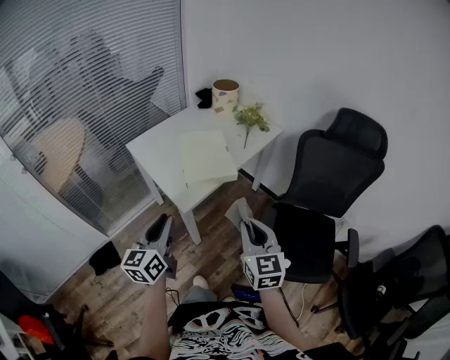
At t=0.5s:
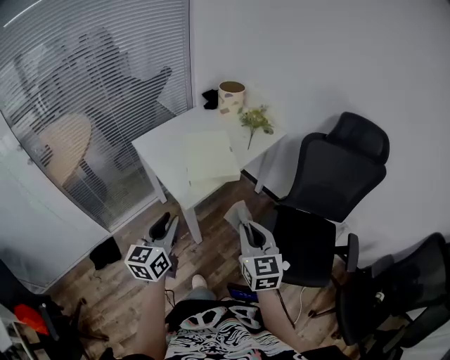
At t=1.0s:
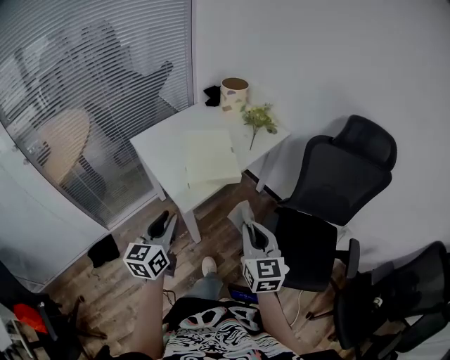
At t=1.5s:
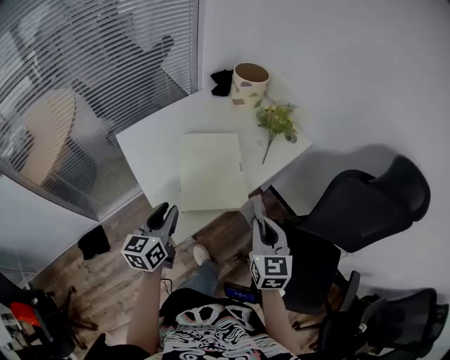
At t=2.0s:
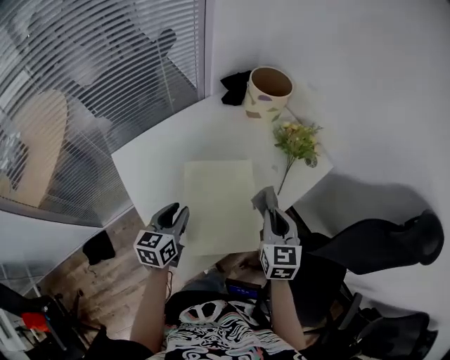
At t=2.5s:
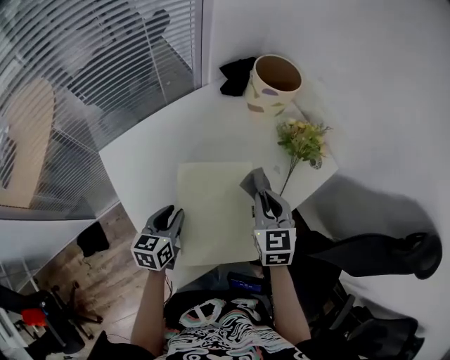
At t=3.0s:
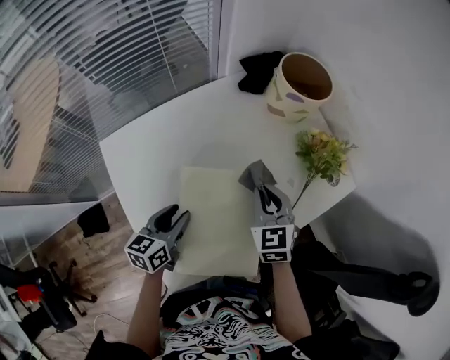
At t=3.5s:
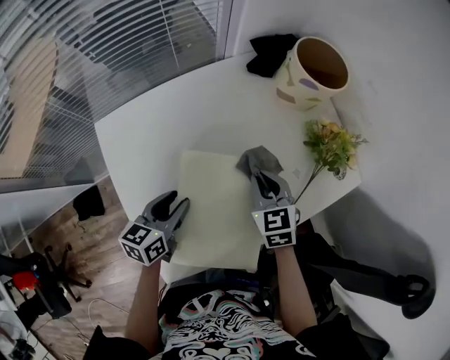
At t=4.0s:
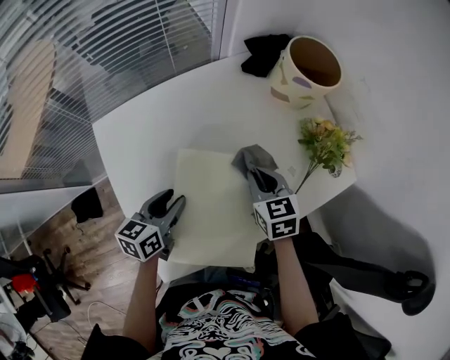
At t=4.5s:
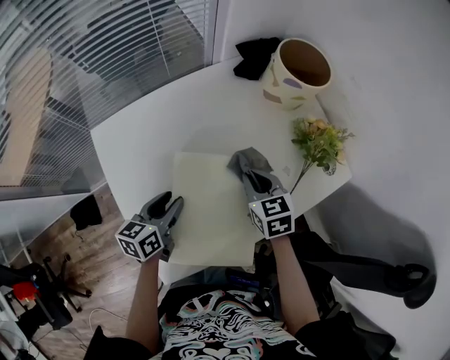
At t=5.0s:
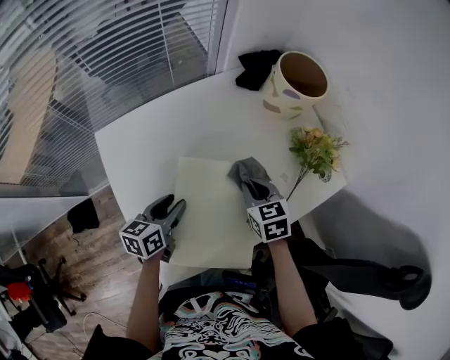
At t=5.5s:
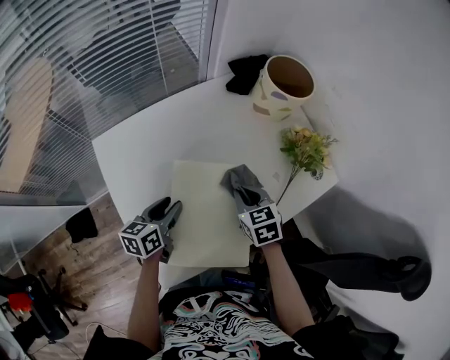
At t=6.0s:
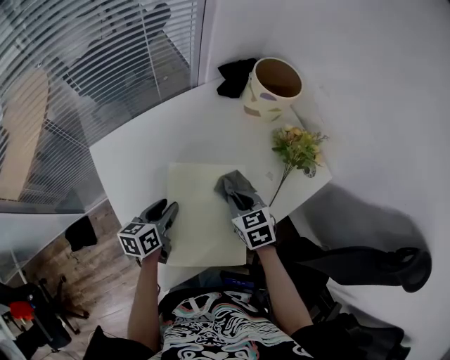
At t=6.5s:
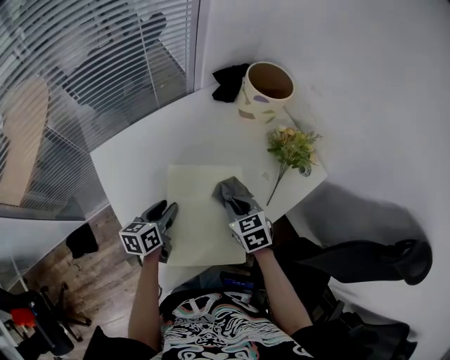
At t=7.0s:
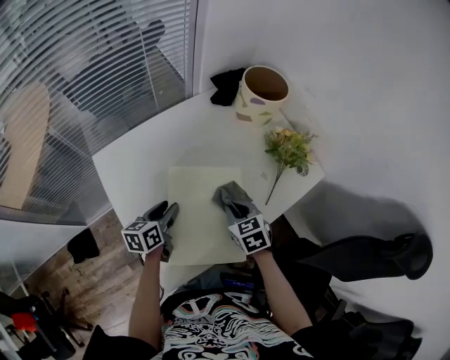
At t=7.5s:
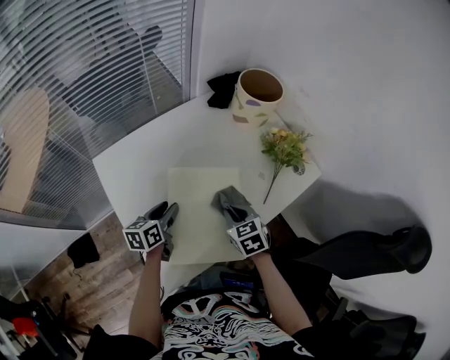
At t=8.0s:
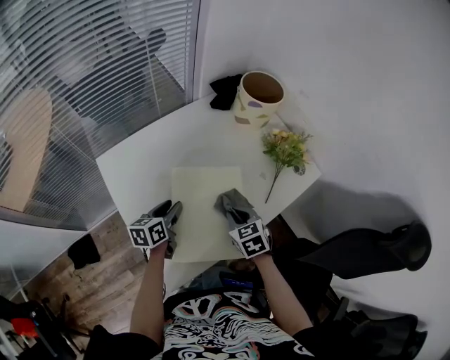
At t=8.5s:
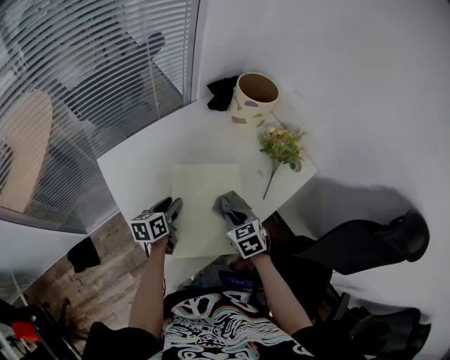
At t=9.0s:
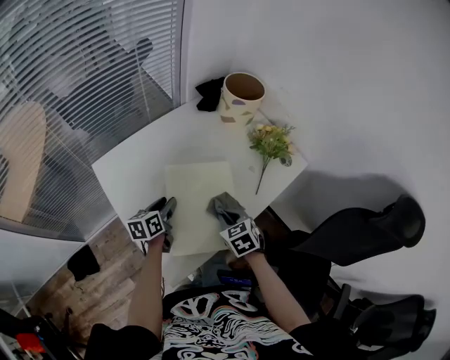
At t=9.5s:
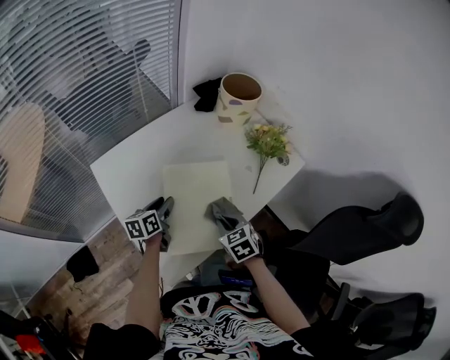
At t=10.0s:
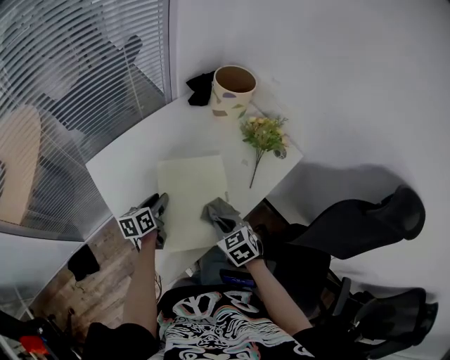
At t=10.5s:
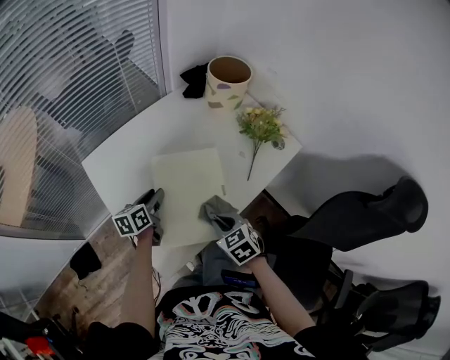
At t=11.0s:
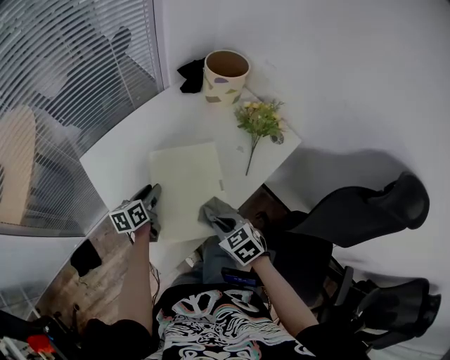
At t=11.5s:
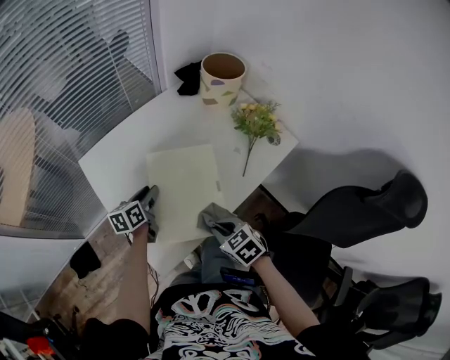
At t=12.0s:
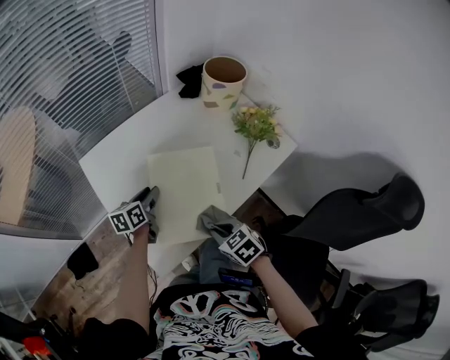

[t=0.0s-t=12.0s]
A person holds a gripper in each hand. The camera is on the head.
t=0.0s to t=2.0s: The grippers both shift forward by approximately 40 cm. The left gripper rotates approximately 20 degrees.
t=2.0s to t=4.0s: The right gripper goes approximately 20 cm forward, downward and to the left, and rotates about 30 degrees. The left gripper goes approximately 10 cm downward and forward.
t=4.0s to t=6.0s: The right gripper goes some 5 cm backward.
t=6.0s to t=8.0s: The right gripper shifts roughly 5 cm backward.
t=8.0s to t=10.0s: The right gripper moves backward, approximately 10 cm.
t=10.0s to t=12.0s: The right gripper shifts approximately 5 cm backward.

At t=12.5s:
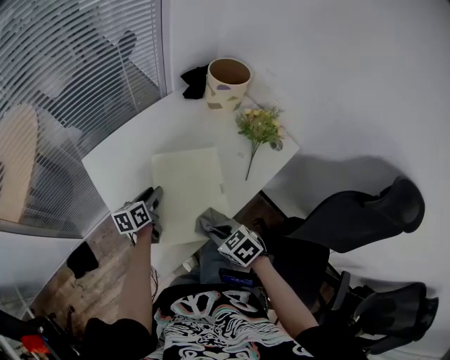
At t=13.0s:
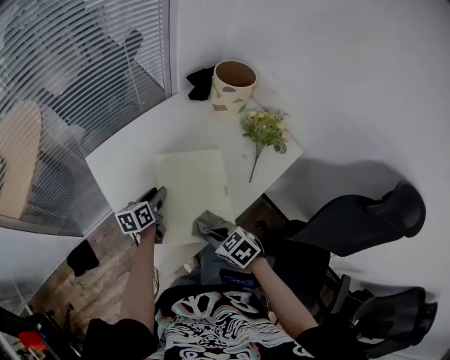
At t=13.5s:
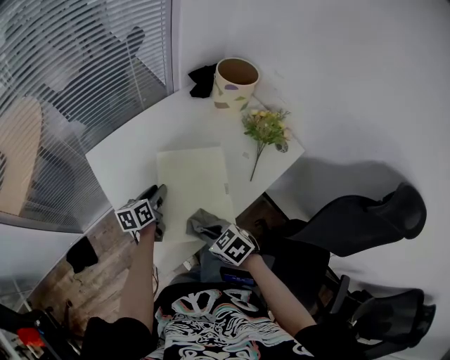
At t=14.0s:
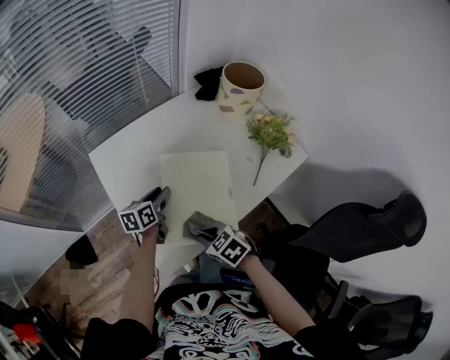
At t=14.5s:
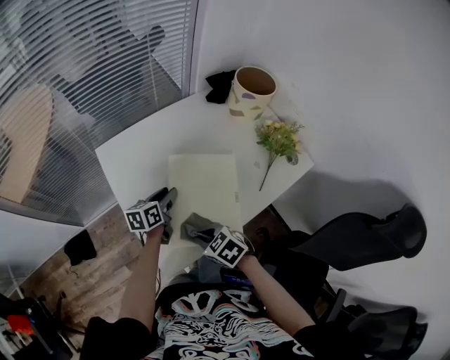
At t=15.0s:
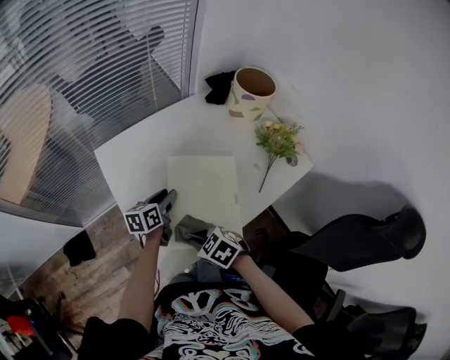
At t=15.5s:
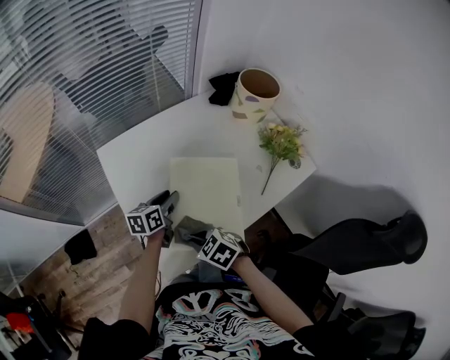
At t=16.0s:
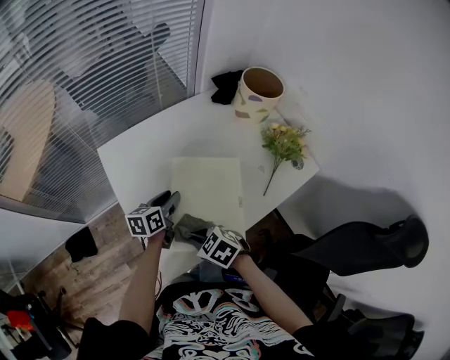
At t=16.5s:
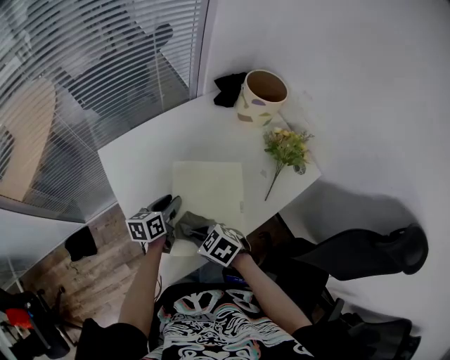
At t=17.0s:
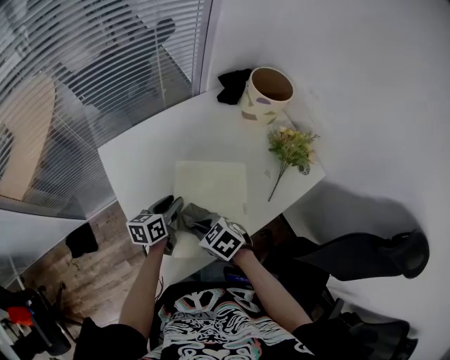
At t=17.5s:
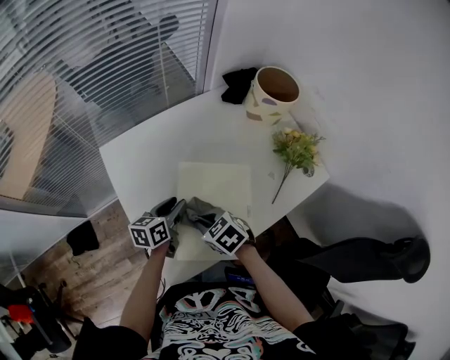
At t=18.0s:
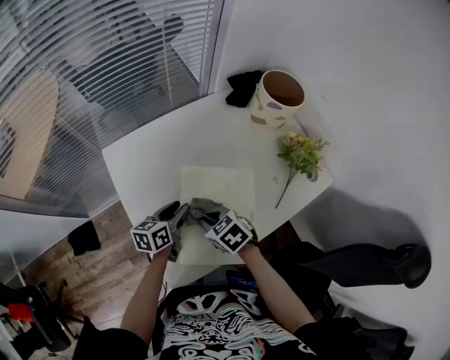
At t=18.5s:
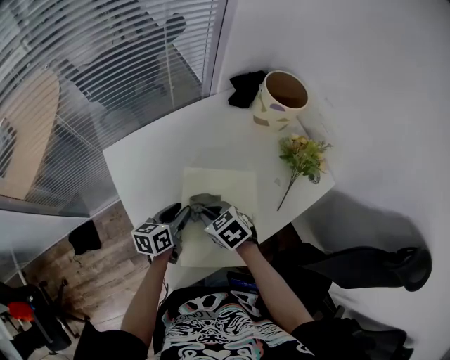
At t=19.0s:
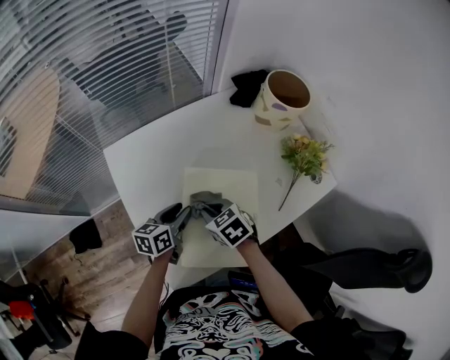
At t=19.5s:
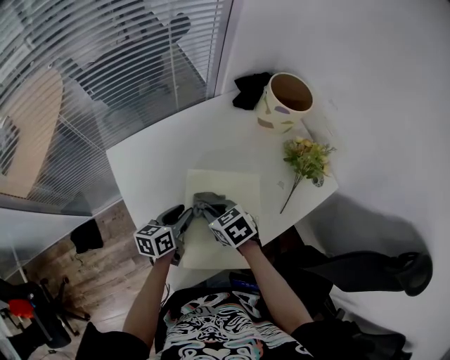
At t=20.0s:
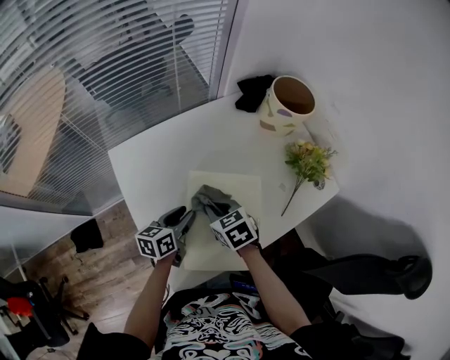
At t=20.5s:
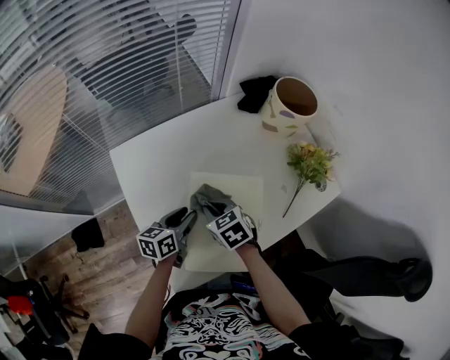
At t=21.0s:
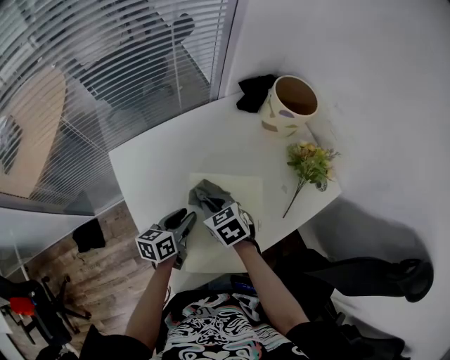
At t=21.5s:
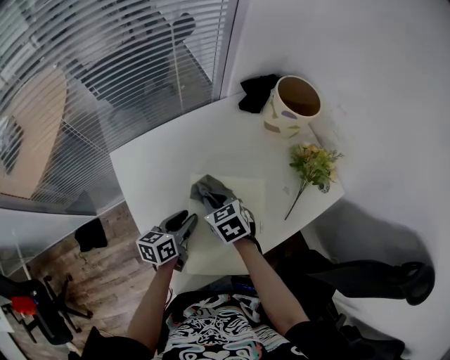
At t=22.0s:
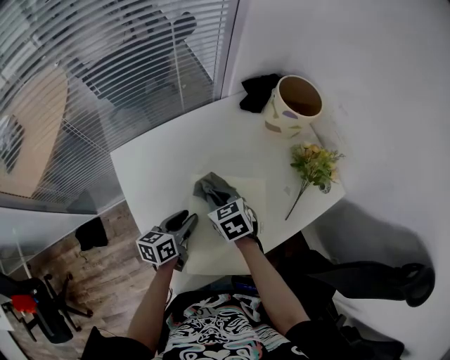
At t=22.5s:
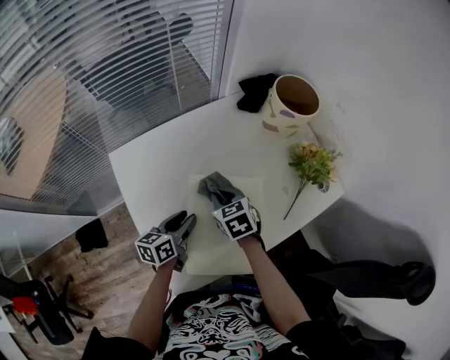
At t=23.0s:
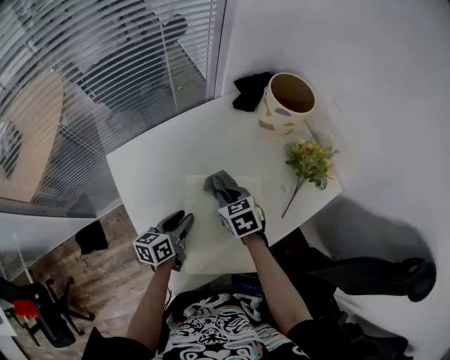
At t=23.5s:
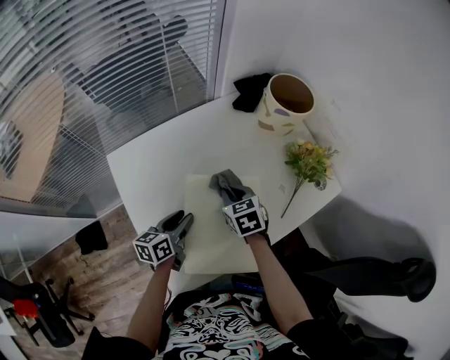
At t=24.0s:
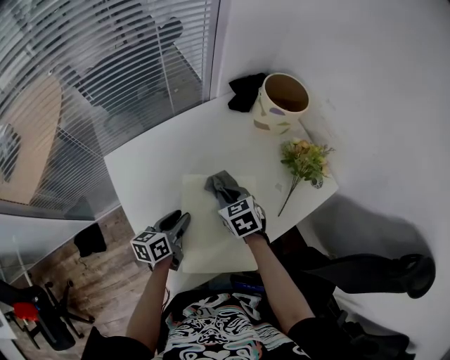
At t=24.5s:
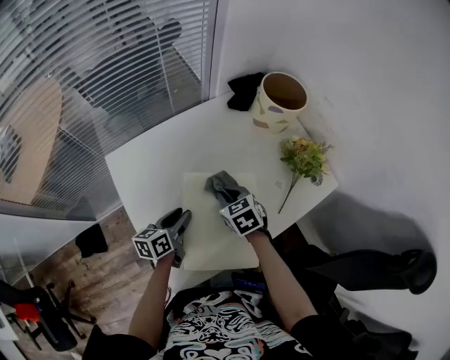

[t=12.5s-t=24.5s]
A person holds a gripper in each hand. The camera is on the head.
t=12.5s to t=14.5s: The right gripper heads to the left, covering some 10 cm.
t=14.5s to t=16.5s: The grippers make only small movements.
t=16.5s to t=18.5s: The right gripper goes approximately 10 cm forward.
t=18.5s to t=20.5s: The grippers stay close to where they were, moving slightly.
t=20.5s to t=22.5s: The right gripper shifts by approximately 5 cm.
t=22.5s to t=24.5s: The grippers stay close to where they were, moving slightly.

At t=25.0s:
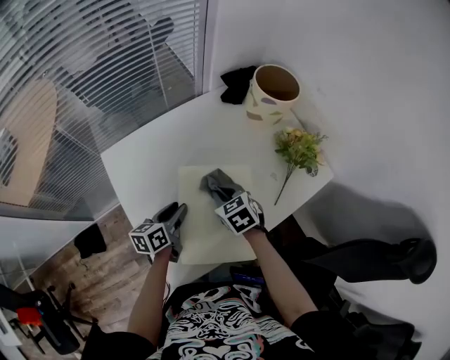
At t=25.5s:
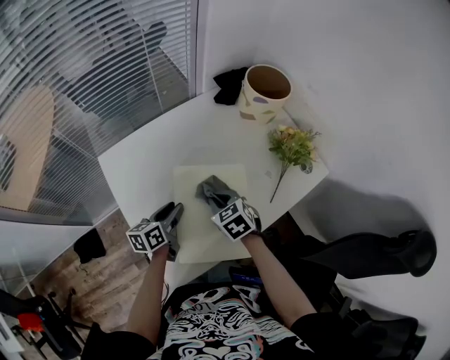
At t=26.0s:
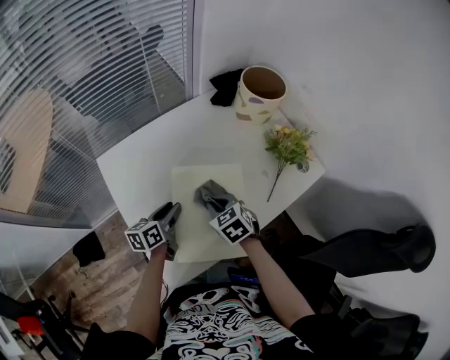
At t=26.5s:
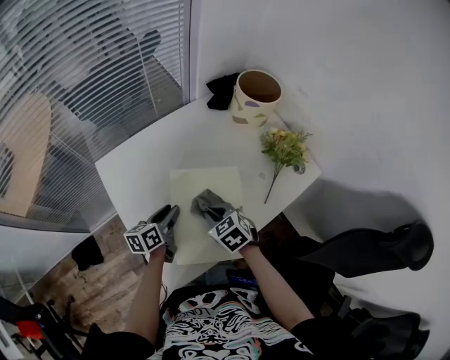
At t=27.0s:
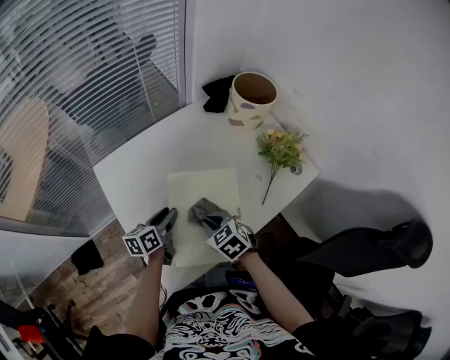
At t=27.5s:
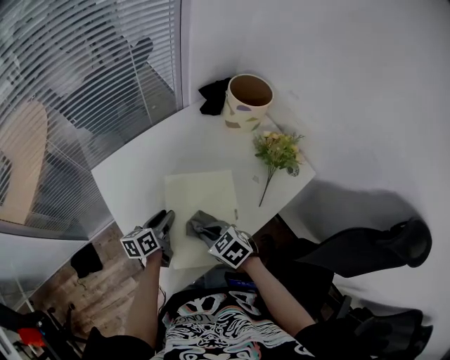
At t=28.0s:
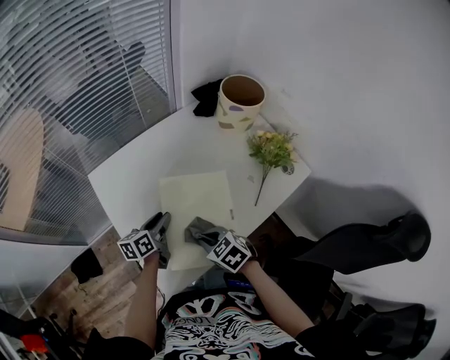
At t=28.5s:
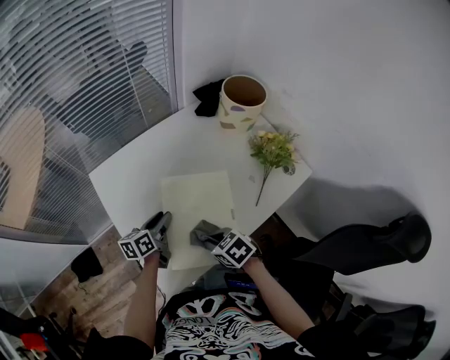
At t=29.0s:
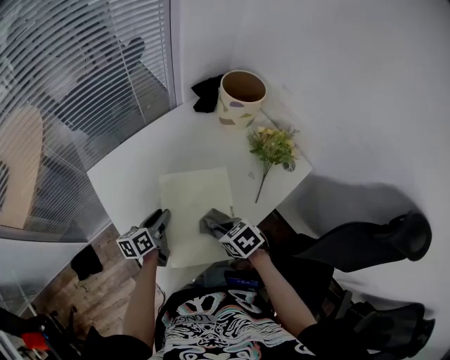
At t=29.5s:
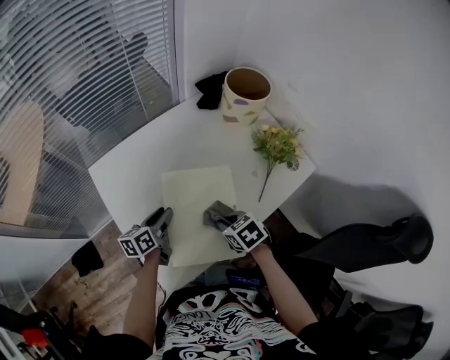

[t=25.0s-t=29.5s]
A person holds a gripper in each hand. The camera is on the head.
t=25.0s to t=27.0s: The right gripper moves backward, approximately 10 cm.
t=27.0s to t=29.5s: The right gripper heads to the right, covering about 5 cm.
